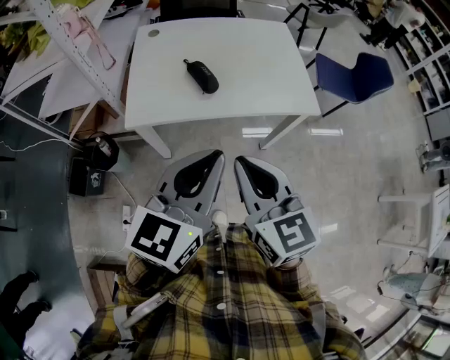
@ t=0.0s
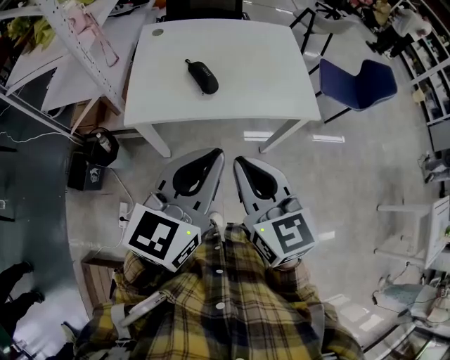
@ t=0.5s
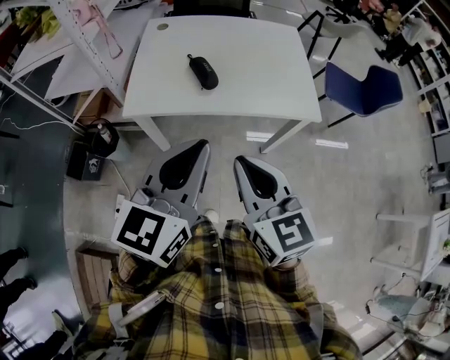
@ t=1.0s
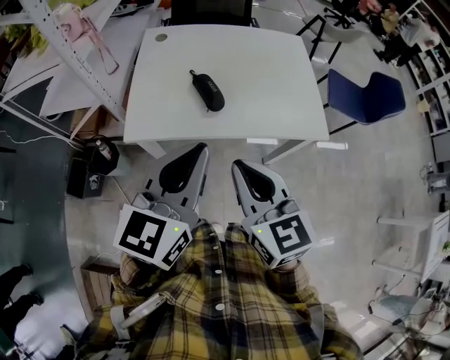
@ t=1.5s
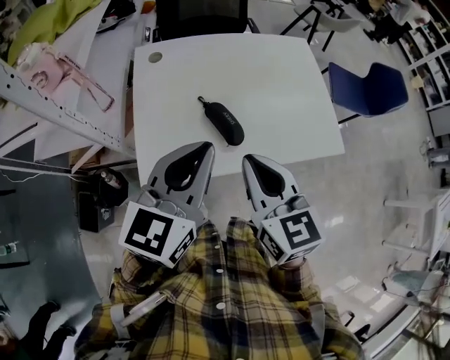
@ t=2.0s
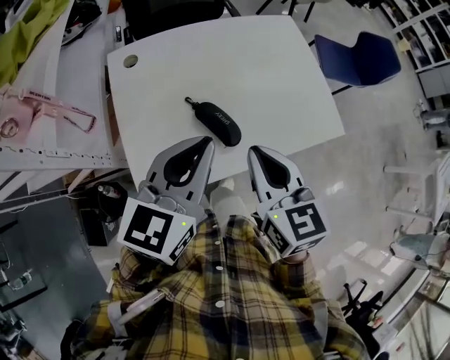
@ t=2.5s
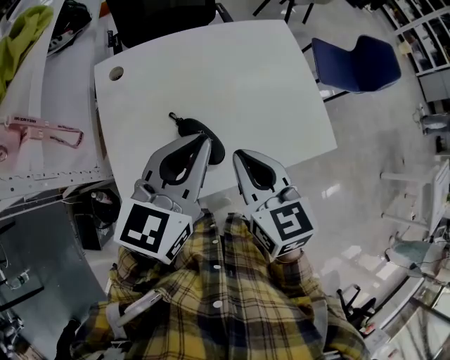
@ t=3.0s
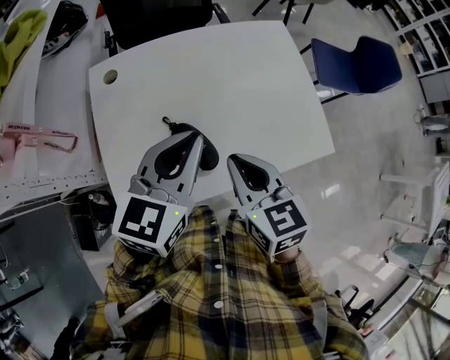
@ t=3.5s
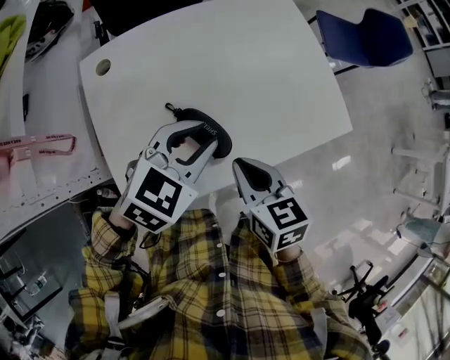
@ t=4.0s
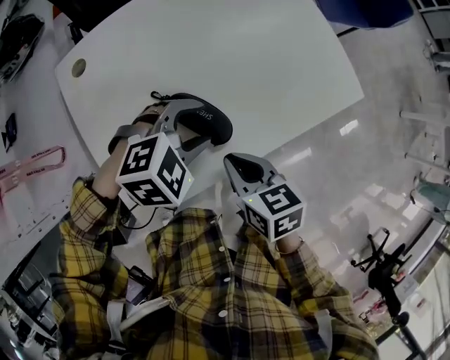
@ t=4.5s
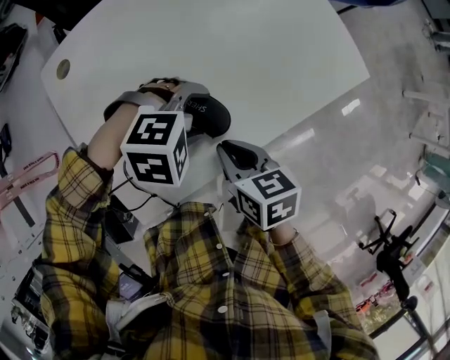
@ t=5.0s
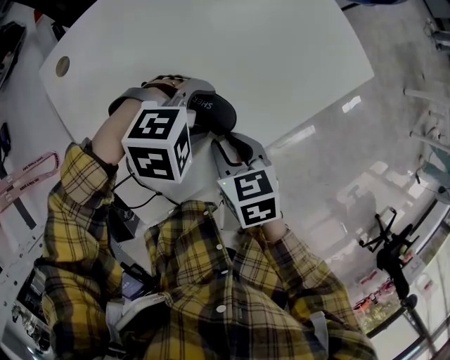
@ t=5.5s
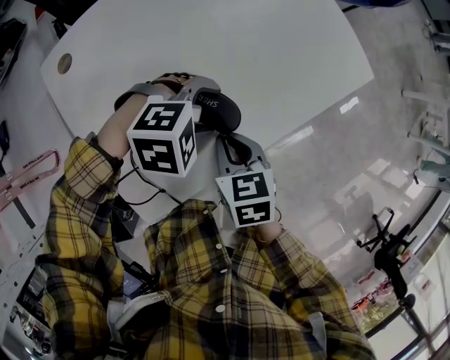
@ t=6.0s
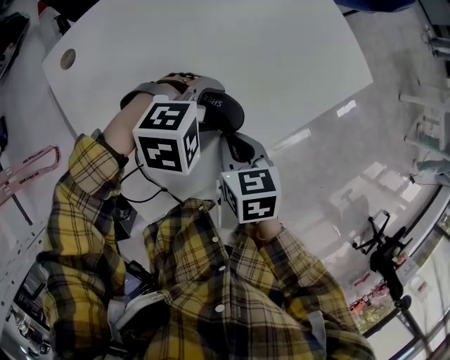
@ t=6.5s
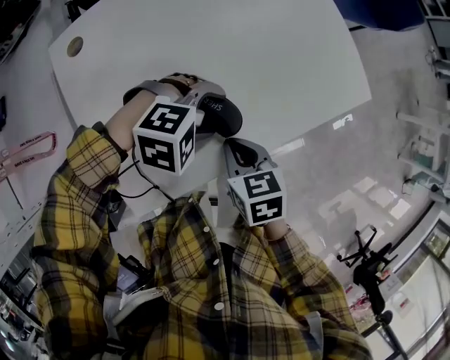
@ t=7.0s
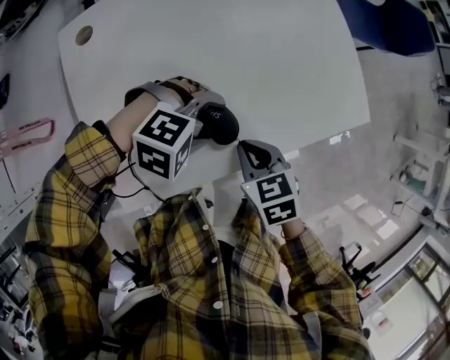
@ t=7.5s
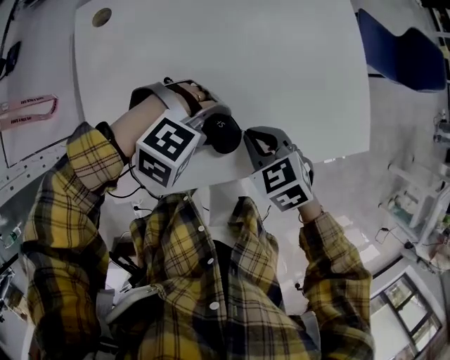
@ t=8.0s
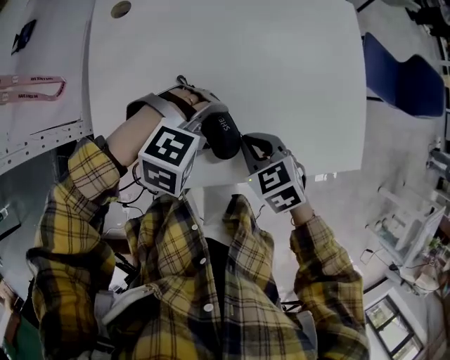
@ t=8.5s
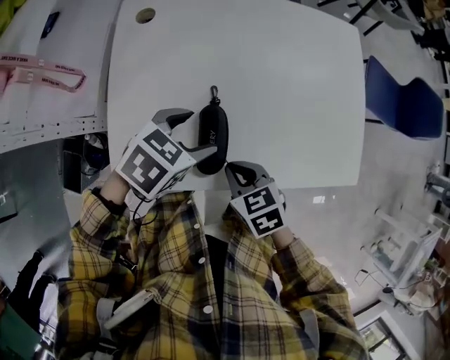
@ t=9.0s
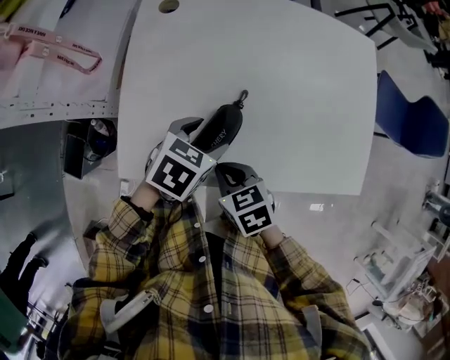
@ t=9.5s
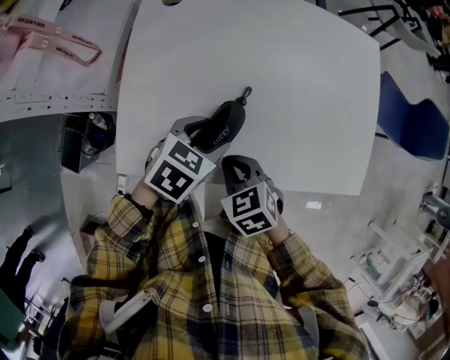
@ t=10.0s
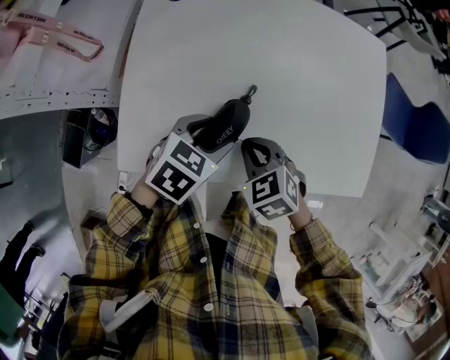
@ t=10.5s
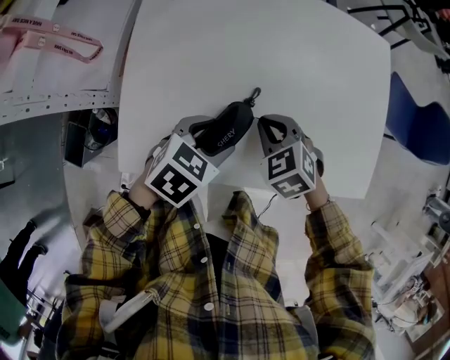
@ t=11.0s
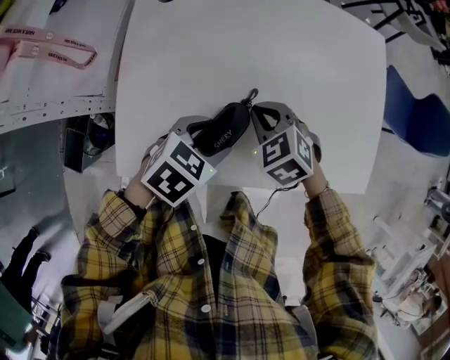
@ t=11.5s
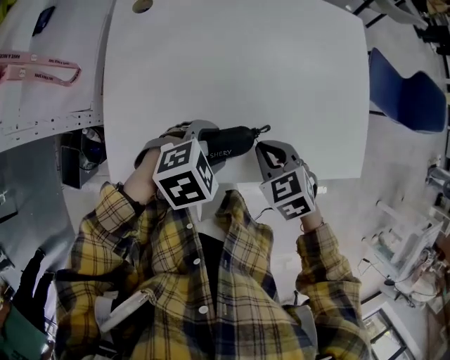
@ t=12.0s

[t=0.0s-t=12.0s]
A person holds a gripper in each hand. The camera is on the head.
t=0.0s to t=2.0s: The left gripper is displaced forward and to the left by about 30 cm; the right gripper moves forward, roughly 25 cm.
t=2.0s to t=4.0s: Both grippers travel together downward and forward, approximately 20 cm. The left gripper changes its angle by some 40 degrees; the right gripper turns by about 30 degrees.
t=4.0s to t=6.0s: Both grippers travel together downward, approximately 15 cm. The left gripper swivels approximately 60 degrees, and opens up.
t=6.0s to t=8.0s: The right gripper shifts by some 10 cm, and rolls counterclockwise, seen from behind, by approximately 40 degrees.
t=8.0s to t=10.0s: The right gripper ends up about 10 cm from where it was. Meanwhile the left gripper changes place by roughly 5 cm, and twists about 90 degrees counterclockwise, seen from behind.
t=10.0s to t=12.0s: The left gripper ends up about 5 cm from where it was, and swivels roughly 40 degrees. The right gripper is displaced to the right and forward by some 10 cm.

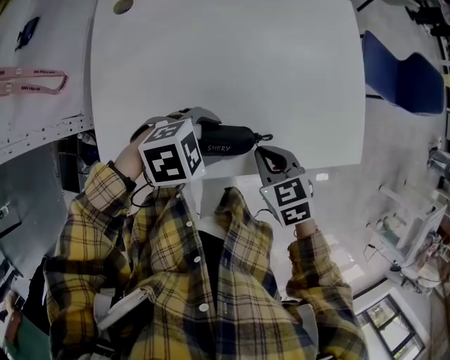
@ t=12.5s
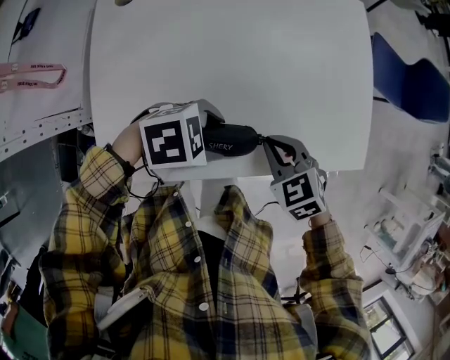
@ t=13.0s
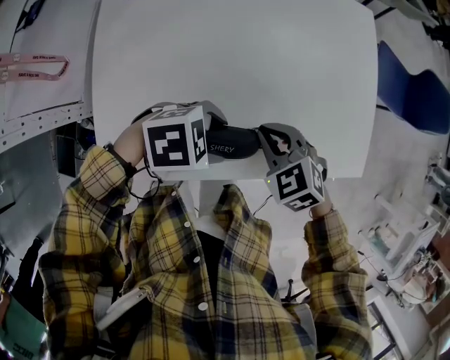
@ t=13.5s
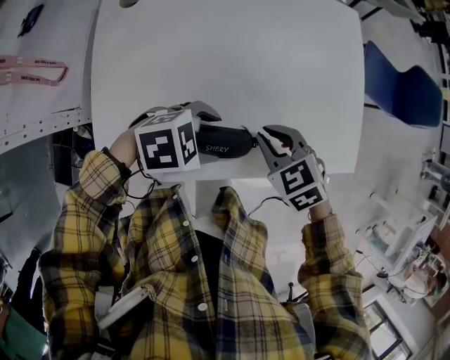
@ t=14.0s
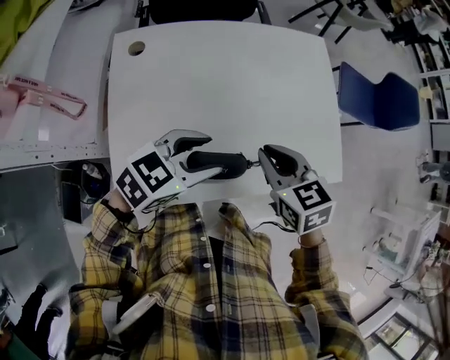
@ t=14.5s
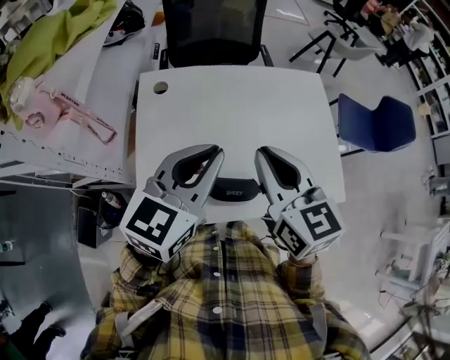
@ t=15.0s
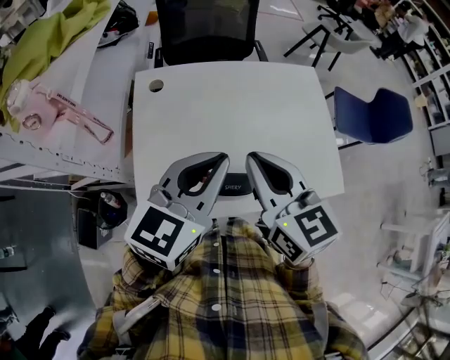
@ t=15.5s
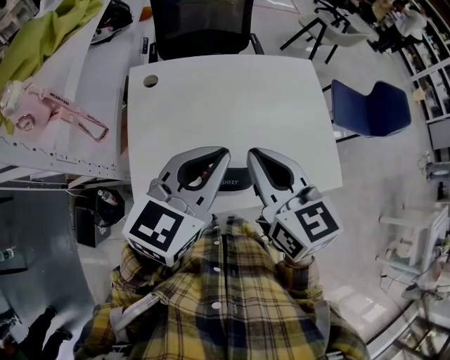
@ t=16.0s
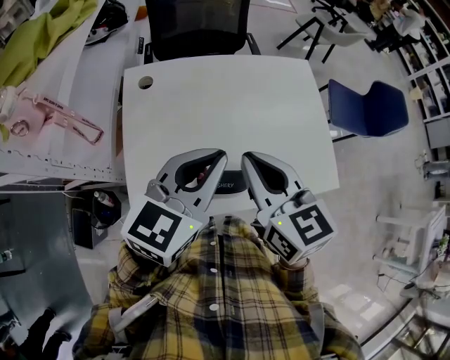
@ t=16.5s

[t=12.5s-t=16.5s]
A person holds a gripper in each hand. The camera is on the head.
t=12.5s to t=14.5s: The two grippers go approximately 15 cm upward. The left gripper turns by roughly 30 degrees.
t=14.5s to t=16.5s: The right gripper goes roughly 15 cm upward and to the left, and swivels approximately 20 degrees, while the left gripper is displaced upward by about 15 cm, turns by roughly 30 degrees, and closes up.

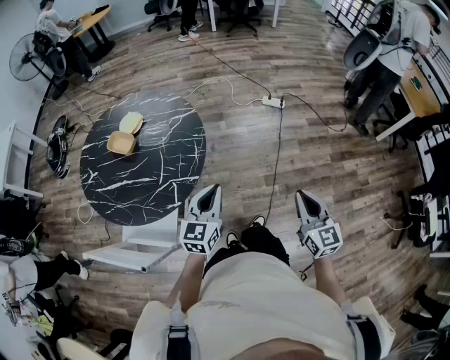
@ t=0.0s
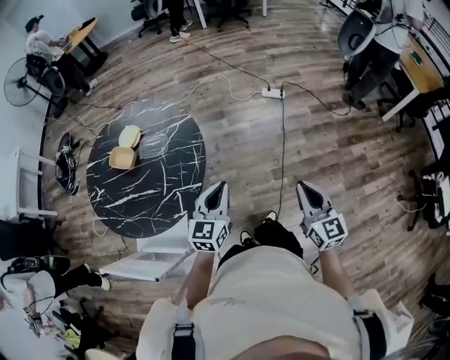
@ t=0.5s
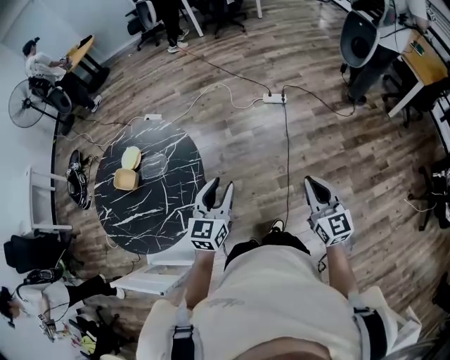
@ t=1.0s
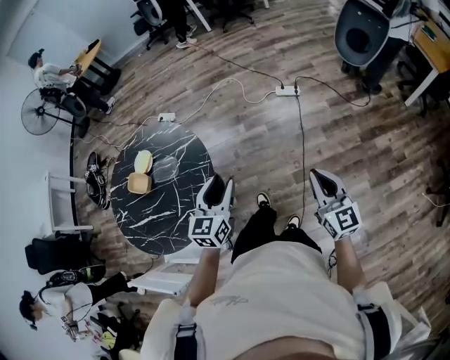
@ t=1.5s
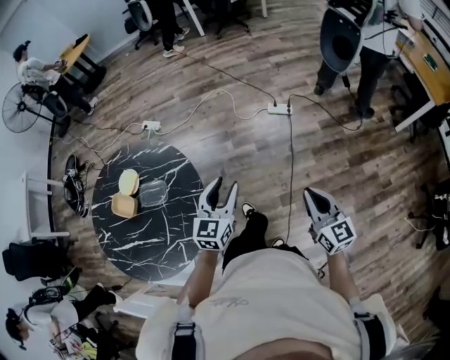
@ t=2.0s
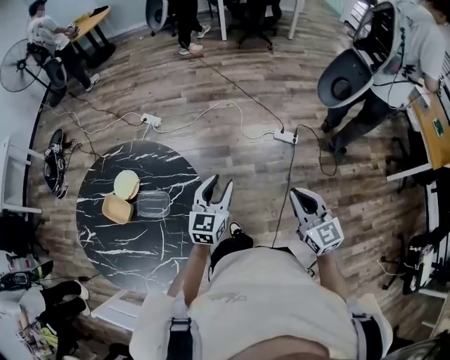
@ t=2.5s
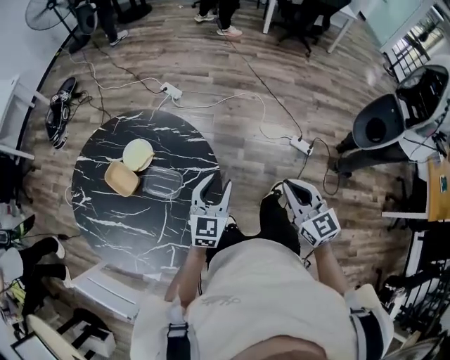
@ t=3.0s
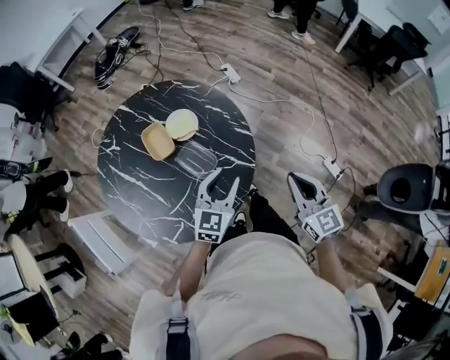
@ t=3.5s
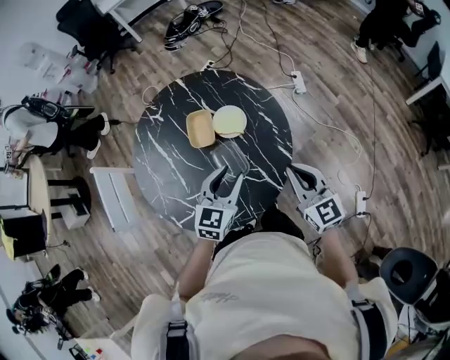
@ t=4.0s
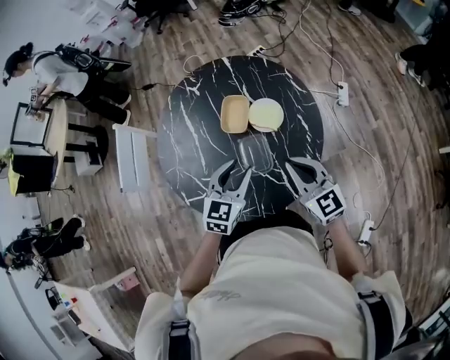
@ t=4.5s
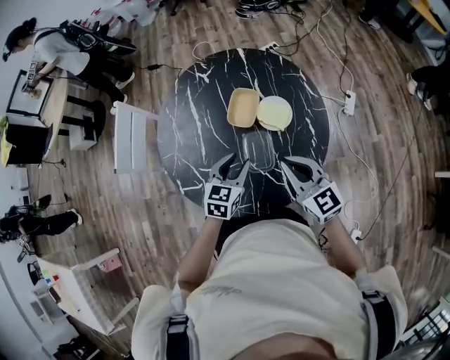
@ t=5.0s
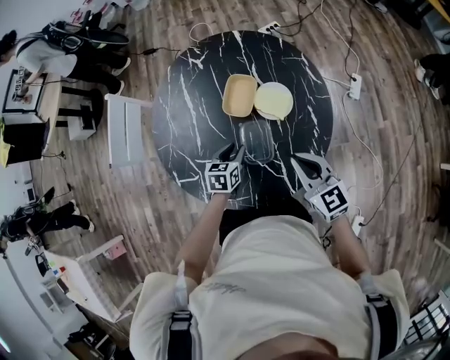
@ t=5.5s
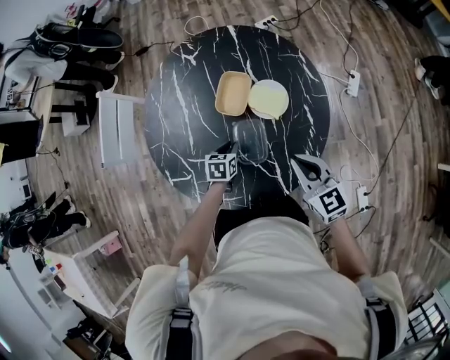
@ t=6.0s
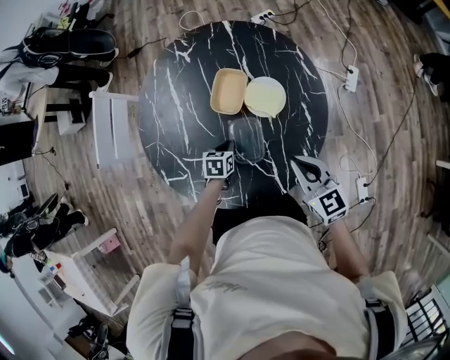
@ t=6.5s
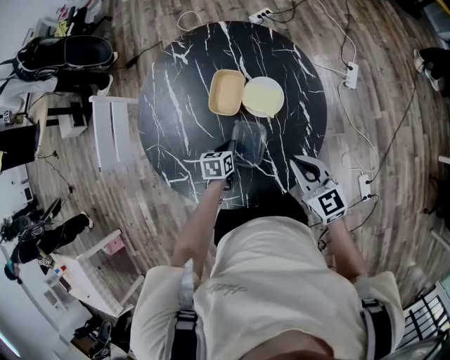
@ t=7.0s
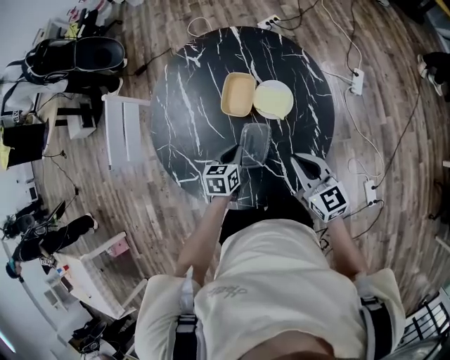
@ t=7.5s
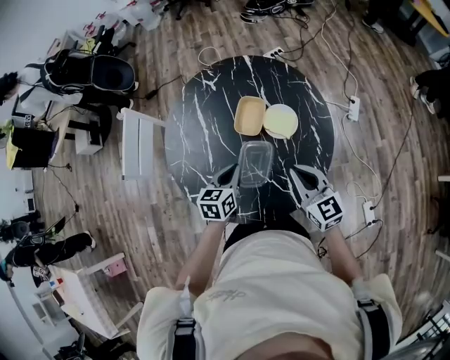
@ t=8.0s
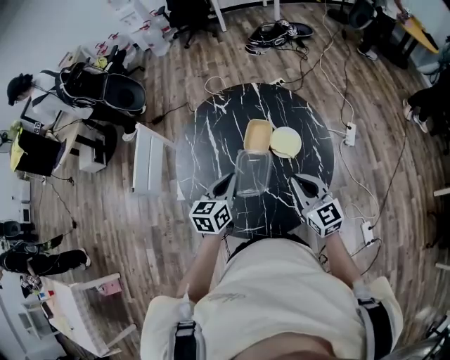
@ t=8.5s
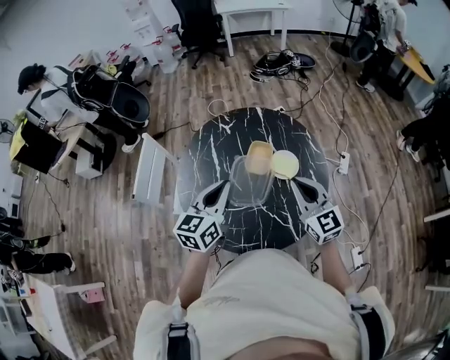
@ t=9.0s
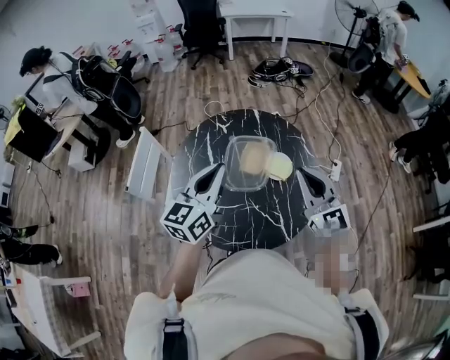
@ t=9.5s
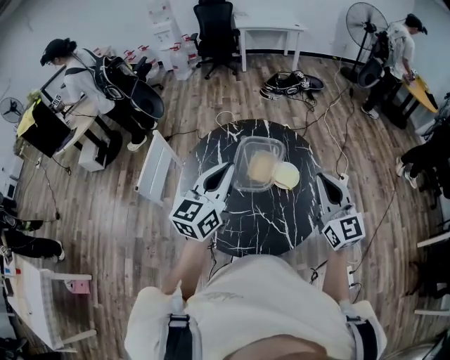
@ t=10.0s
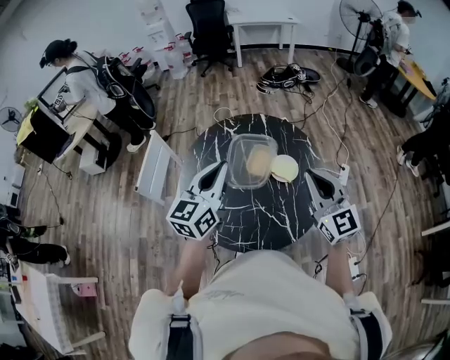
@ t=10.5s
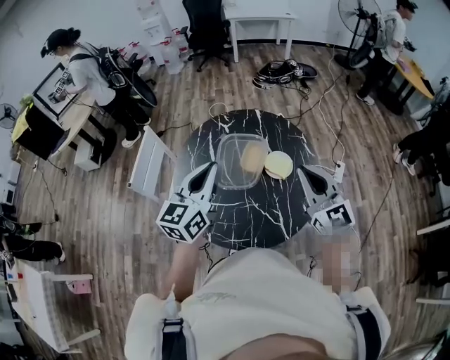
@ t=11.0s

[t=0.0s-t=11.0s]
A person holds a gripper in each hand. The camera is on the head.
t=0.0s to t=2.0s: The grippers both shift forward by about 25 cm. The left gripper opens up.
t=2.0s to t=3.5s: The left gripper shifts by roughly 30 cm, and rotates approximately 40 degrees; the right gripper ends up approximately 40 cm from where it was, and changes its angle by roughly 50 degrees.
t=3.5s to t=5.5s: The right gripper shifts by about 25 cm, and rotates some 60 degrees. Meanwhile the left gripper heads downward, covering approximately 20 cm, and turns by about 70 degrees.
t=5.5s to t=7.5s: The left gripper goes downward and returns, some 10 cm each way, and closes.
t=7.5s to t=9.0s: The left gripper heads upward, covering roughly 30 cm, and tilts its fingers about 40 degrees upward. The right gripper travels upward and to the left by roughly 15 cm, and swivels some 20 degrees.
t=9.0s to t=11.0s: The grippers both shift upward by roughly 10 cm.
